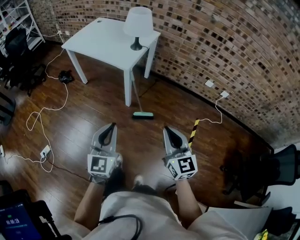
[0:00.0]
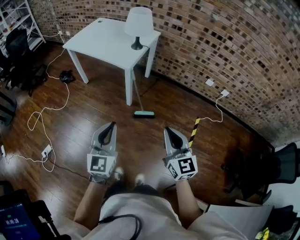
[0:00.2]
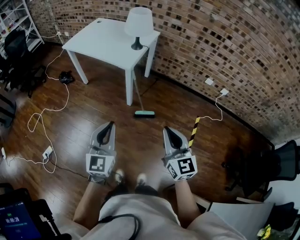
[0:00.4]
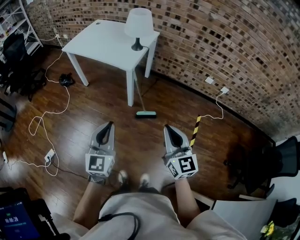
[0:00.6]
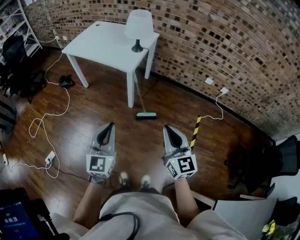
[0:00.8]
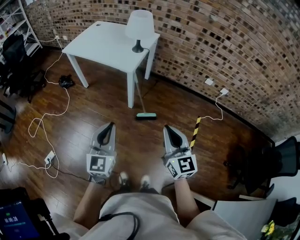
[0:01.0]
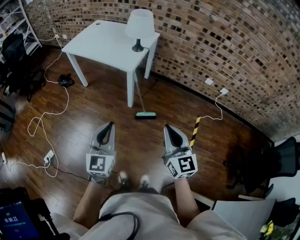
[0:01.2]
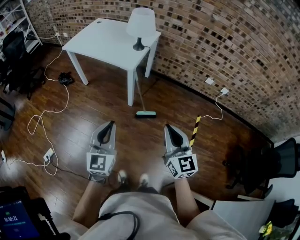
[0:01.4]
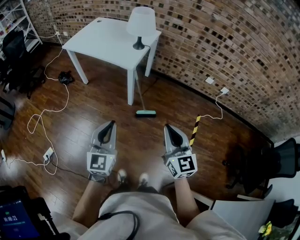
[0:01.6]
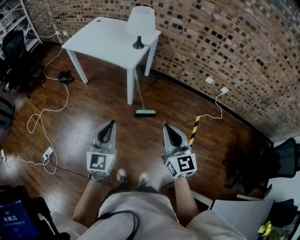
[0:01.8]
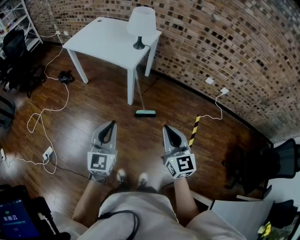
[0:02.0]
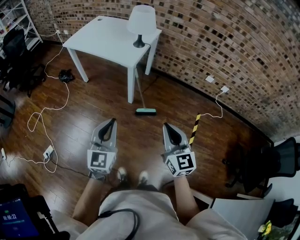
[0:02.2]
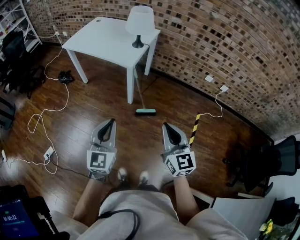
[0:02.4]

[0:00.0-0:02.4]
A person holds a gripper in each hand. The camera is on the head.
0:00.0 to 0:01.2: The right gripper shifts by roughly 5 cm; the left gripper travels to the left by roughly 5 cm.
0:01.2 to 0:02.4: There are only small adjustments of the grippers.

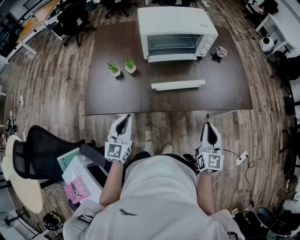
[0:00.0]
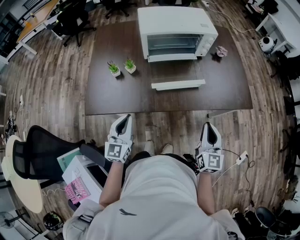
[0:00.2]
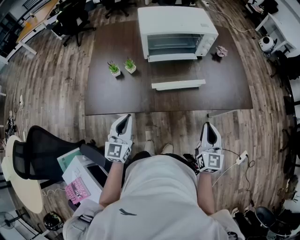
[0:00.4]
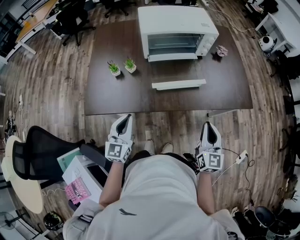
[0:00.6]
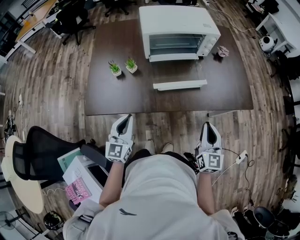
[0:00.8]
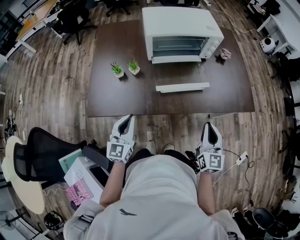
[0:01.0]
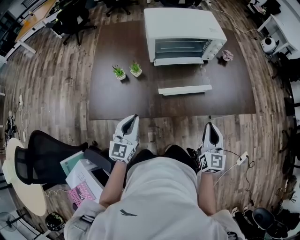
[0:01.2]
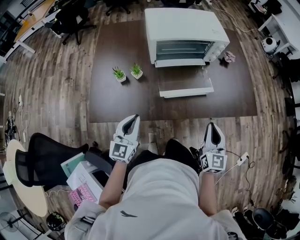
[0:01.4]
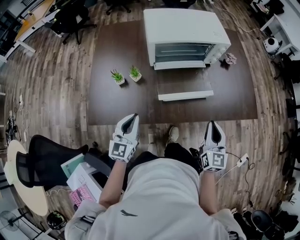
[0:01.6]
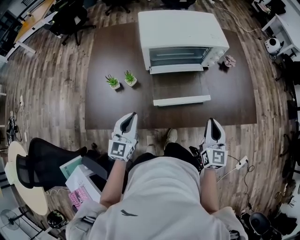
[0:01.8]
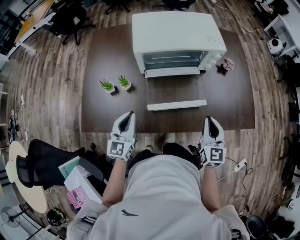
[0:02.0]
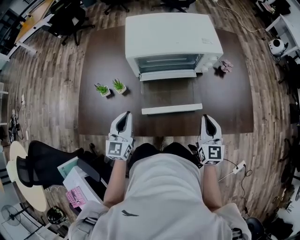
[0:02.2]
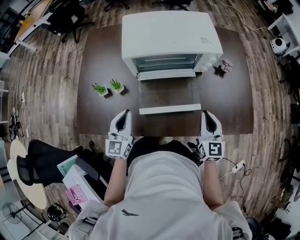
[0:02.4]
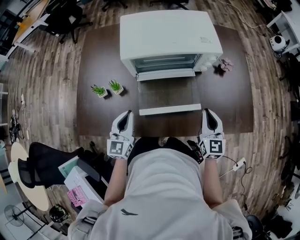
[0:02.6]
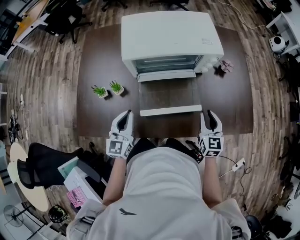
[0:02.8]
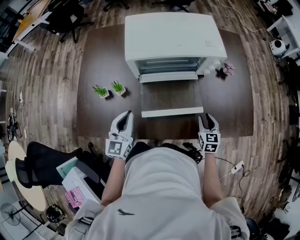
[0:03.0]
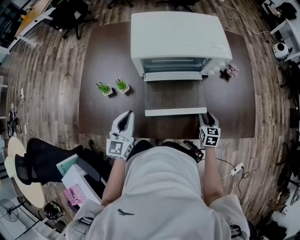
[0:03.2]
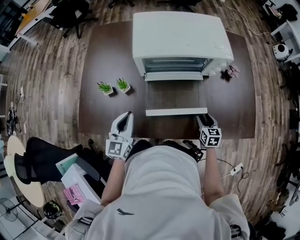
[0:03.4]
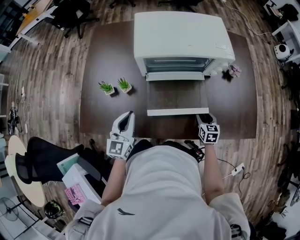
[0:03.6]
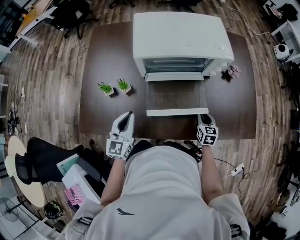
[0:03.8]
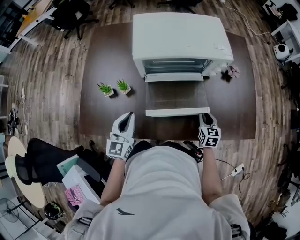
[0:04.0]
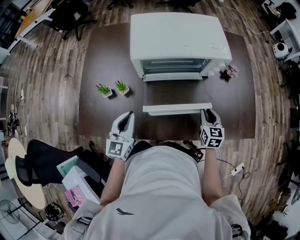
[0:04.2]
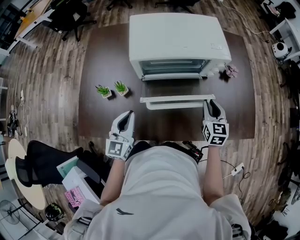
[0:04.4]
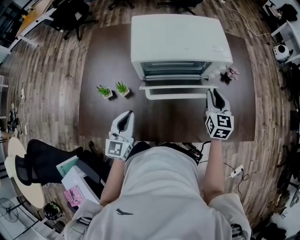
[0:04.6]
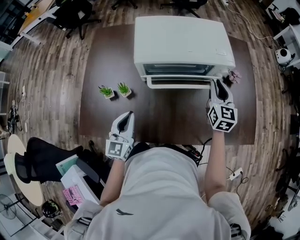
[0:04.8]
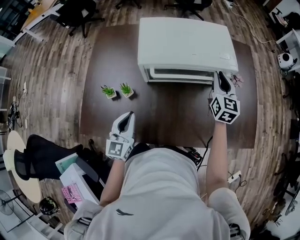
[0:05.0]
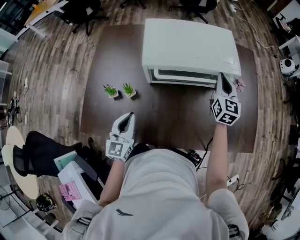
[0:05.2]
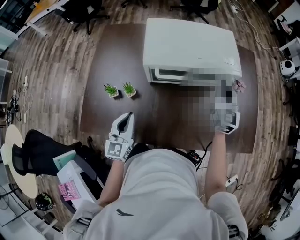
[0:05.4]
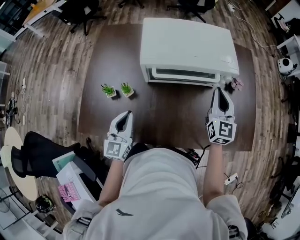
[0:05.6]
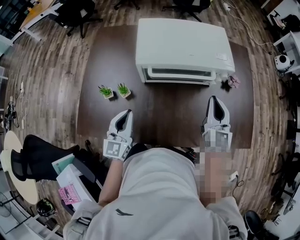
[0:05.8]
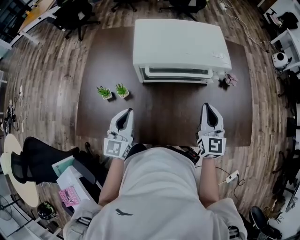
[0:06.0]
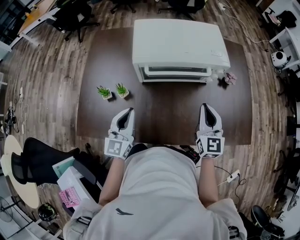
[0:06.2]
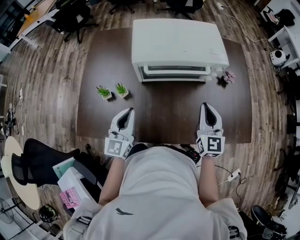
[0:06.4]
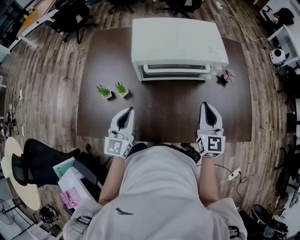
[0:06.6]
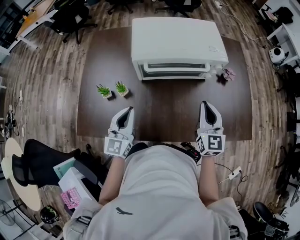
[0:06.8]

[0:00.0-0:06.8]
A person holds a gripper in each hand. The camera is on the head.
0:00.0 to 0:01.4: The two grippers go approximately 5 cm forward.
0:01.4 to 0:02.8: The left gripper travels forward and to the right by some 15 cm. Meanwhile the right gripper moves forward, downward and to the right, roughly 20 cm, and opens.
0:02.8 to 0:04.0: The right gripper shifts some 10 cm downward, and opens and closes again.
0:04.0 to 0:05.4: The right gripper travels upward and forward by some 30 cm, and swivels about 30 degrees.
0:05.4 to 0:06.8: The right gripper heads backward, covering some 15 cm.

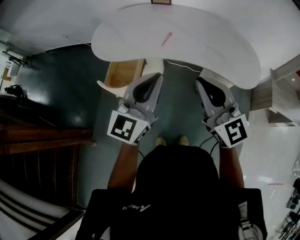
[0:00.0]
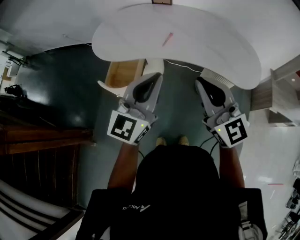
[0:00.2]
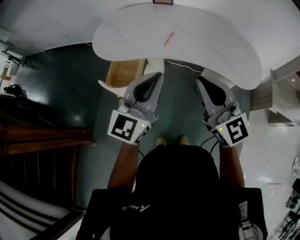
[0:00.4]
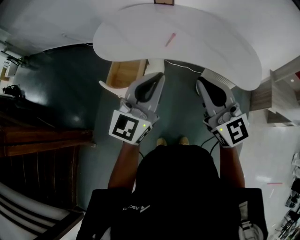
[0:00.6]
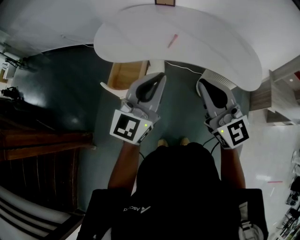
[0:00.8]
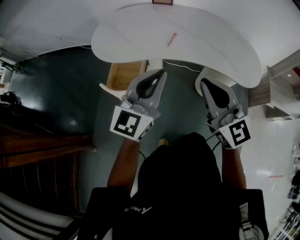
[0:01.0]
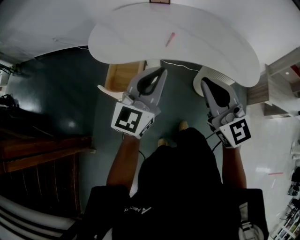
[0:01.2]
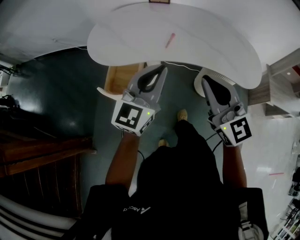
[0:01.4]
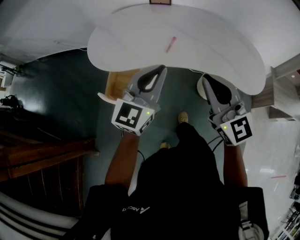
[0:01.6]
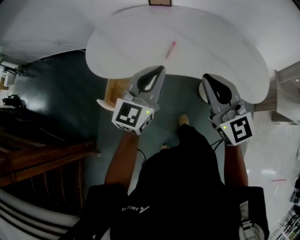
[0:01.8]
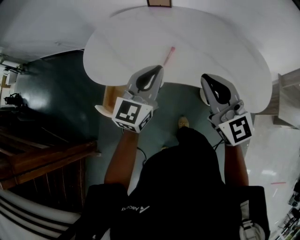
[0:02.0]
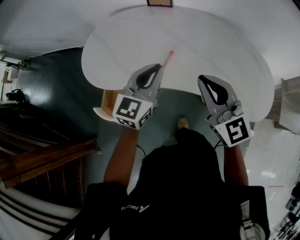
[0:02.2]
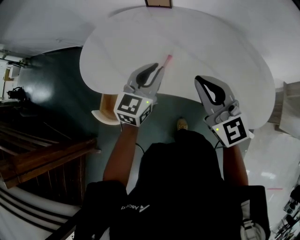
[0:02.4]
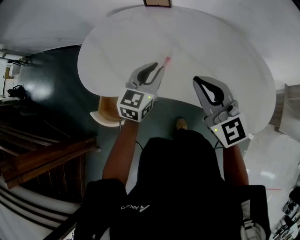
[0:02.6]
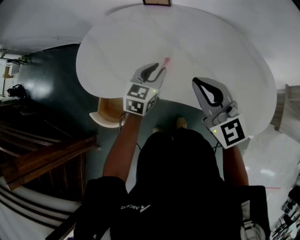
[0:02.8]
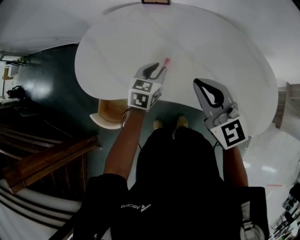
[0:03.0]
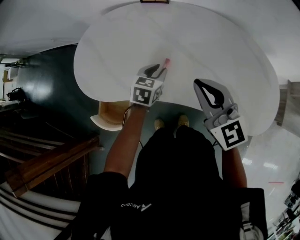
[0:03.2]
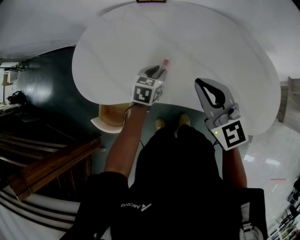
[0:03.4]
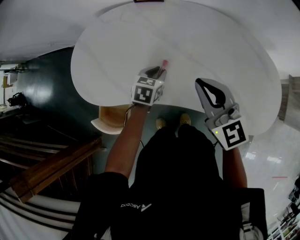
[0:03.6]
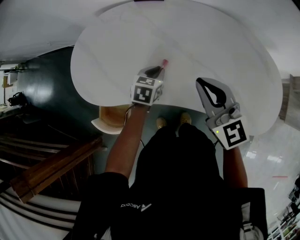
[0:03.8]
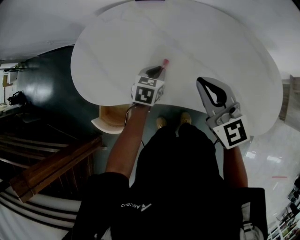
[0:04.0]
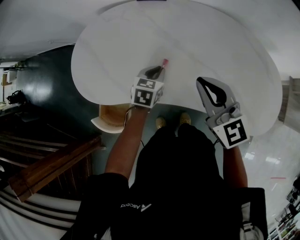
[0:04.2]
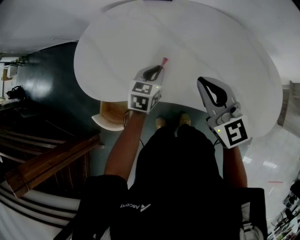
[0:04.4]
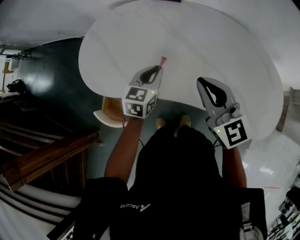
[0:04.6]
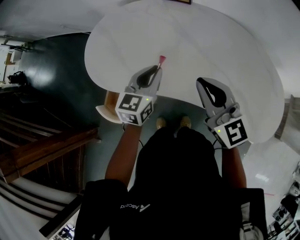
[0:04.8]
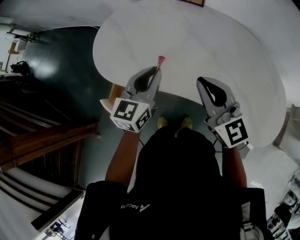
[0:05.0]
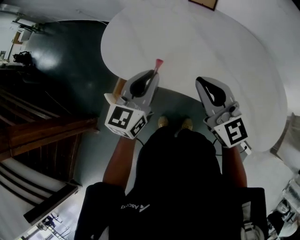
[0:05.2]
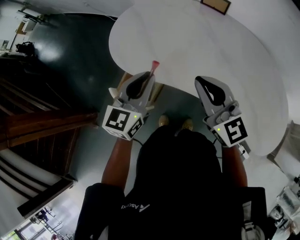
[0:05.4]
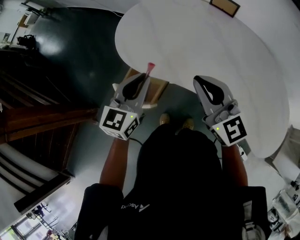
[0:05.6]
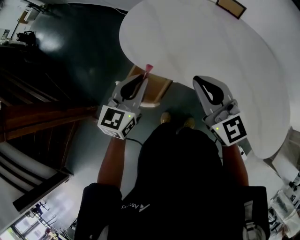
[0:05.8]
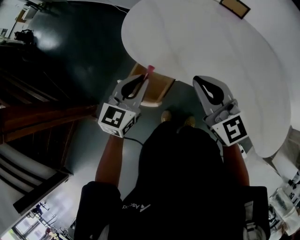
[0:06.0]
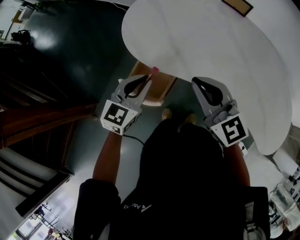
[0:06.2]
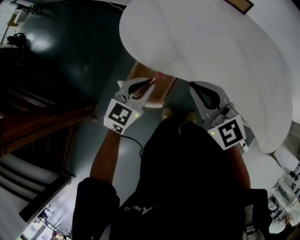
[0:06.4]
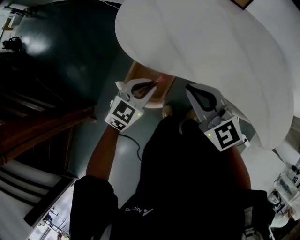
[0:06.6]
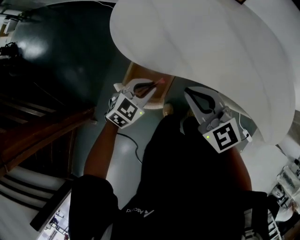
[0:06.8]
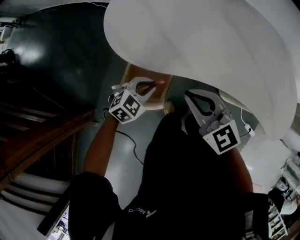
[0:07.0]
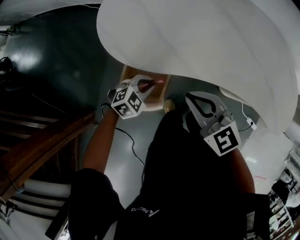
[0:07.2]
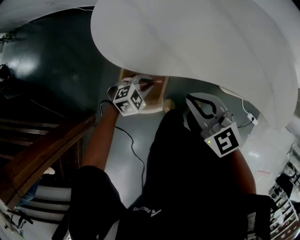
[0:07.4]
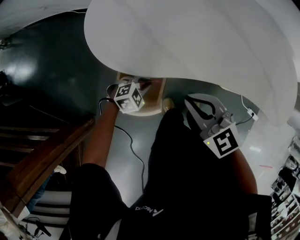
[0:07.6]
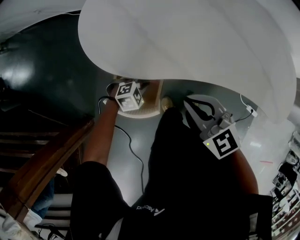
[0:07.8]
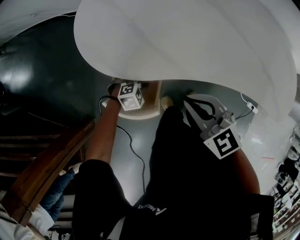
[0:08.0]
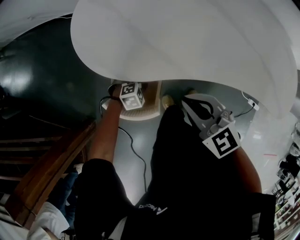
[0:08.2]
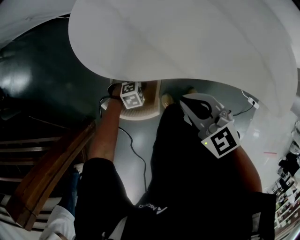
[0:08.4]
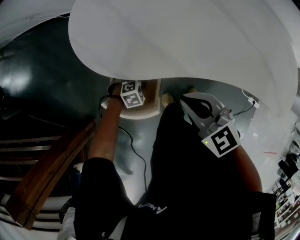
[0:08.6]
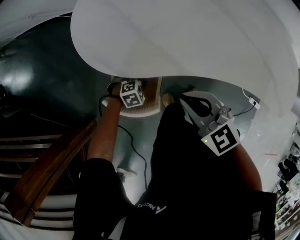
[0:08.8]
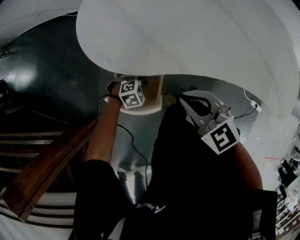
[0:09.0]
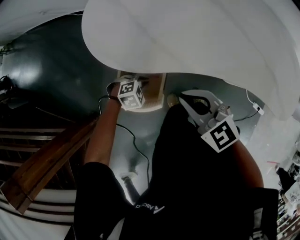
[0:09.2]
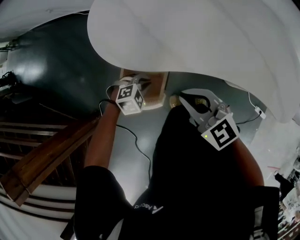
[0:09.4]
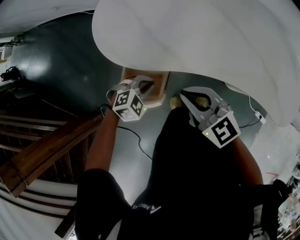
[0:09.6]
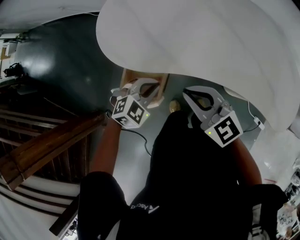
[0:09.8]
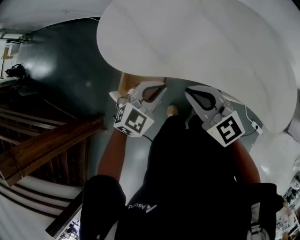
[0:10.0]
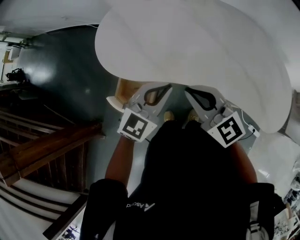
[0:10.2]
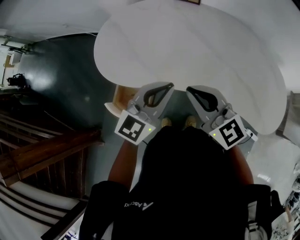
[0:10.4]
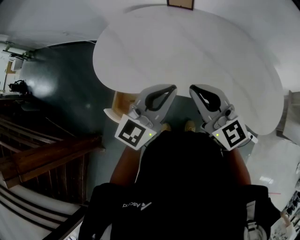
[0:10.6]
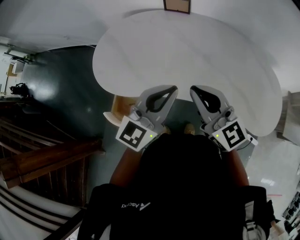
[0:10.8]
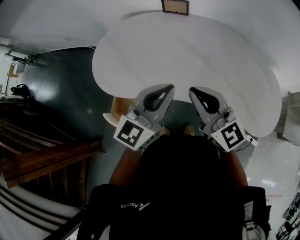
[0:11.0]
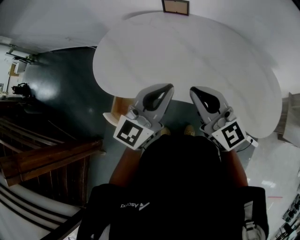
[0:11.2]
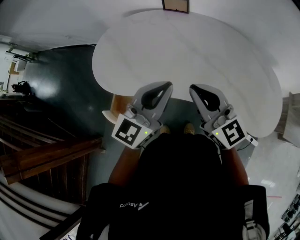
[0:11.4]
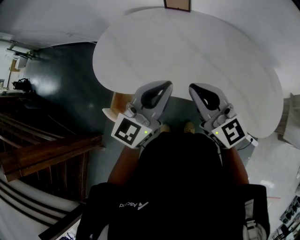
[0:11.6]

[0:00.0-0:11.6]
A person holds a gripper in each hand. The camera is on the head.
0:00.0 to 0:01.4: The left gripper heads forward, covering some 5 cm. The right gripper ends up approximately 5 cm from where it was.
0:01.4 to 0:02.8: The left gripper moves forward and downward, approximately 35 cm, angles its fingers downward, by about 30 degrees, and opens. The right gripper moves forward, approximately 25 cm.
0:02.8 to 0:04.4: The left gripper shifts approximately 5 cm downward.
0:04.4 to 0:05.8: The right gripper travels to the left by about 25 cm, and changes its angle by about 20 degrees. The left gripper shifts approximately 30 cm to the left and upward, and swivels some 30 degrees.
0:05.8 to 0:07.2: The right gripper is displaced downward and to the left by about 15 cm, and swivels about 20 degrees. Meanwhile the left gripper travels downward by approximately 25 cm, and points its fingers approximately 40 degrees further downward.
0:07.2 to 0:08.8: The left gripper heads downward, covering about 15 cm, and turns by approximately 20 degrees.
0:08.8 to 0:10.2: The left gripper heads upward, covering approximately 35 cm, and tilts its fingers approximately 50 degrees upward. Meanwhile the right gripper heads upward, covering some 10 cm, and turns by approximately 20 degrees.
0:10.2 to 0:11.6: The right gripper shifts approximately 15 cm to the right; the left gripper shifts about 15 cm to the right and upward, and turns by about 20 degrees.

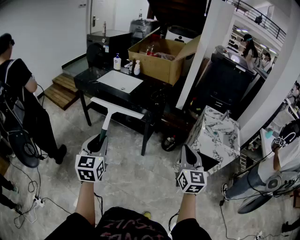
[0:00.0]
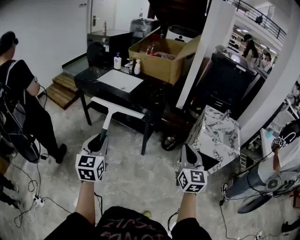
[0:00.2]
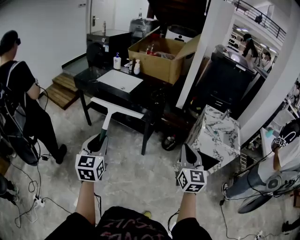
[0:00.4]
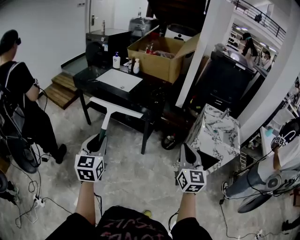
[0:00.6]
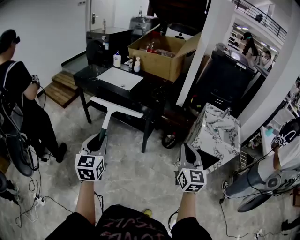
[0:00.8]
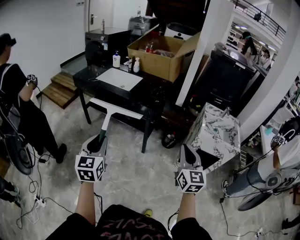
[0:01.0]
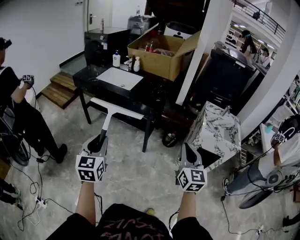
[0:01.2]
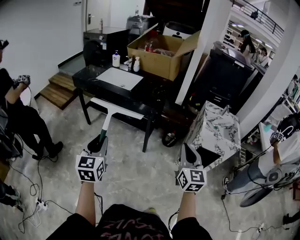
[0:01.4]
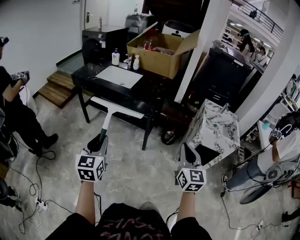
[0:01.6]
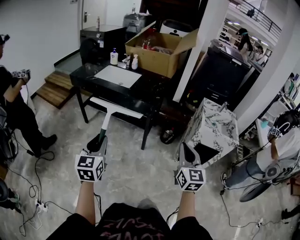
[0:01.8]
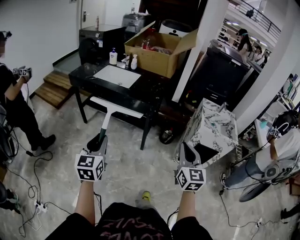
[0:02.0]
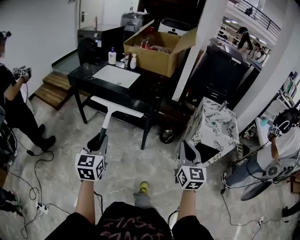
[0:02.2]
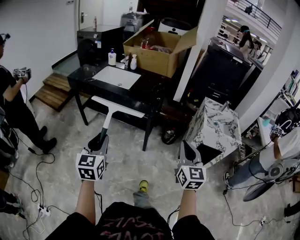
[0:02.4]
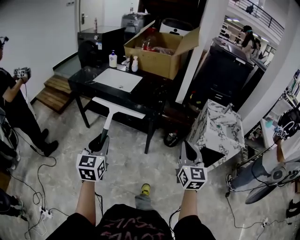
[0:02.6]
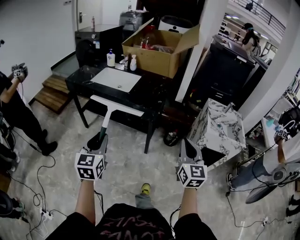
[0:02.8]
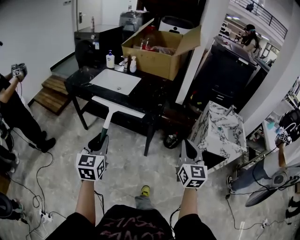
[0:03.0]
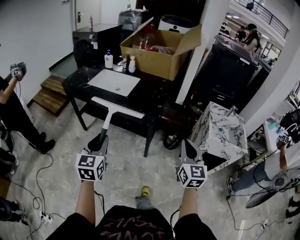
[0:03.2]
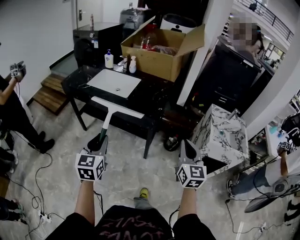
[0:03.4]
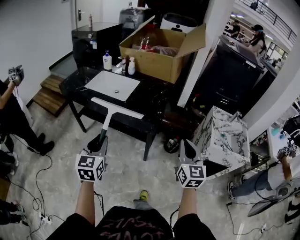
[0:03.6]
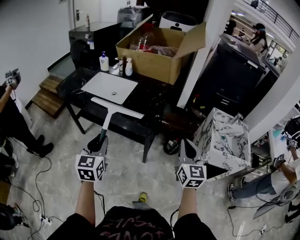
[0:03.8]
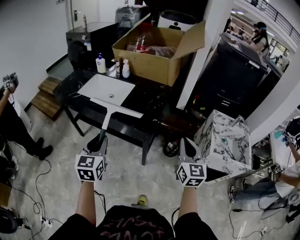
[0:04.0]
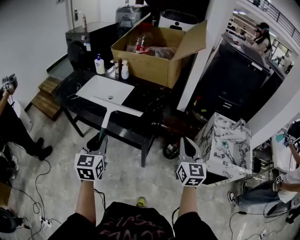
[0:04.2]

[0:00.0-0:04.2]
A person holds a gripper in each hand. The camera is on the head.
0:00.0 to 0:01.4: The grippers make only small movements.
0:01.4 to 0:02.8: Both grippers travel together forward, about 10 cm.
0:02.8 to 0:04.2: Both grippers travel together forward, roughly 25 cm.
